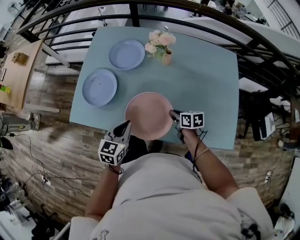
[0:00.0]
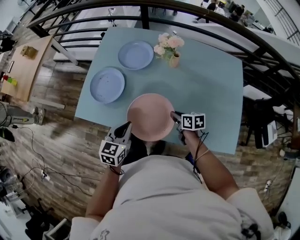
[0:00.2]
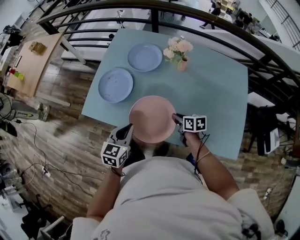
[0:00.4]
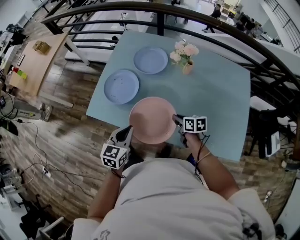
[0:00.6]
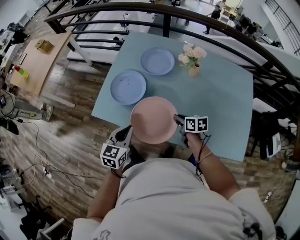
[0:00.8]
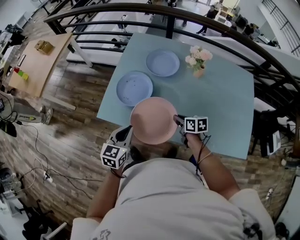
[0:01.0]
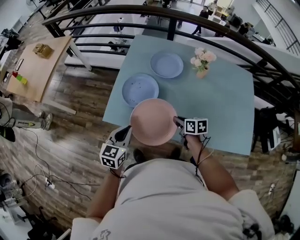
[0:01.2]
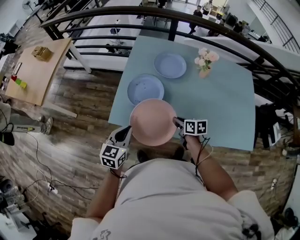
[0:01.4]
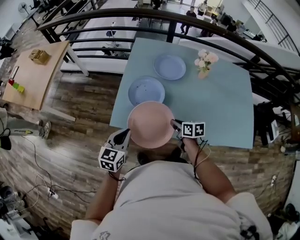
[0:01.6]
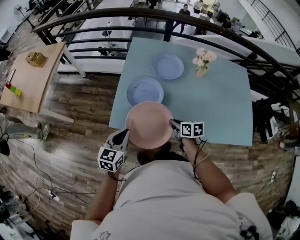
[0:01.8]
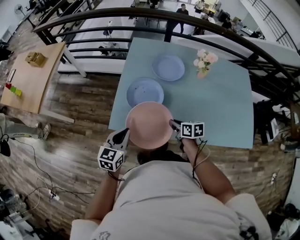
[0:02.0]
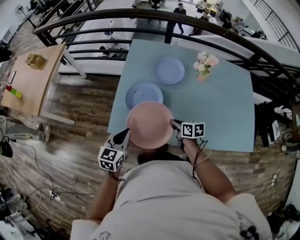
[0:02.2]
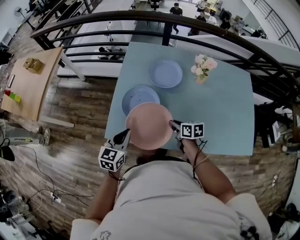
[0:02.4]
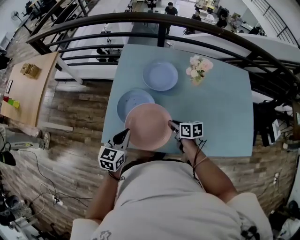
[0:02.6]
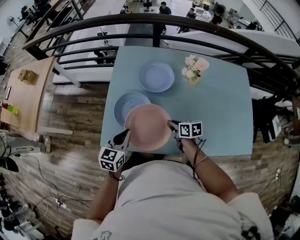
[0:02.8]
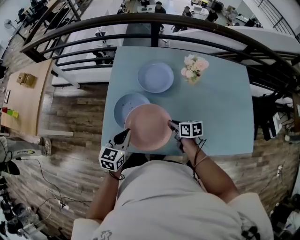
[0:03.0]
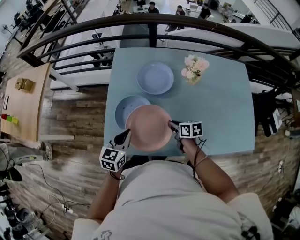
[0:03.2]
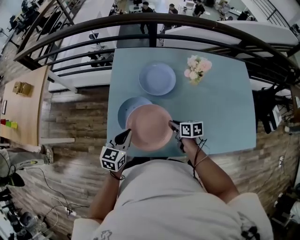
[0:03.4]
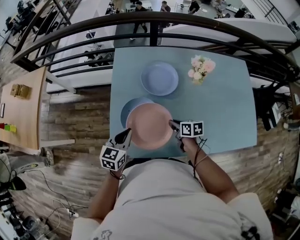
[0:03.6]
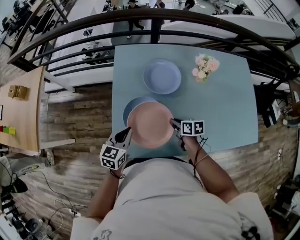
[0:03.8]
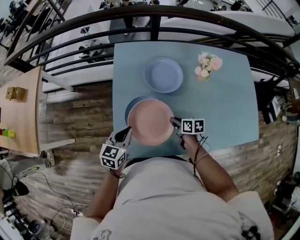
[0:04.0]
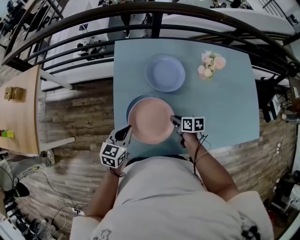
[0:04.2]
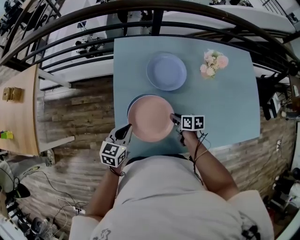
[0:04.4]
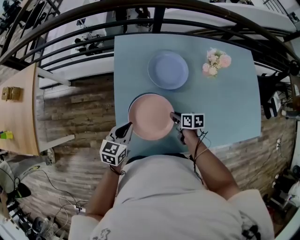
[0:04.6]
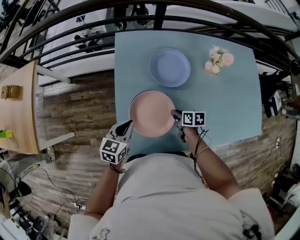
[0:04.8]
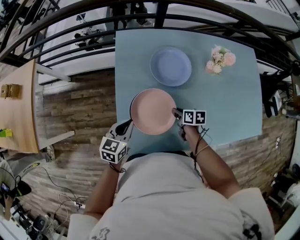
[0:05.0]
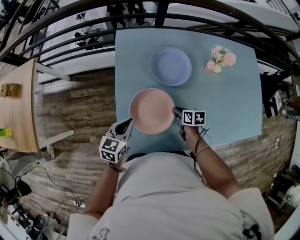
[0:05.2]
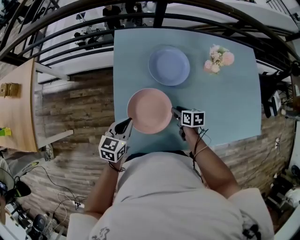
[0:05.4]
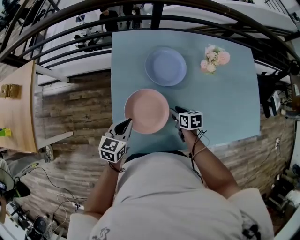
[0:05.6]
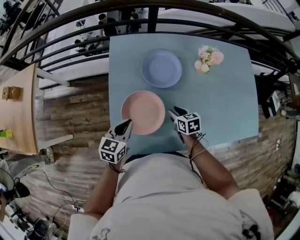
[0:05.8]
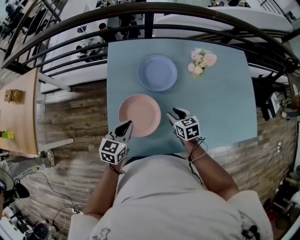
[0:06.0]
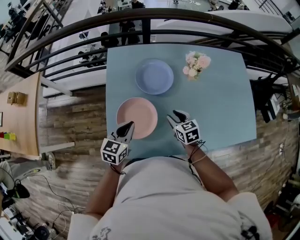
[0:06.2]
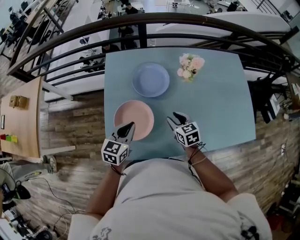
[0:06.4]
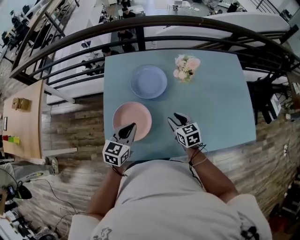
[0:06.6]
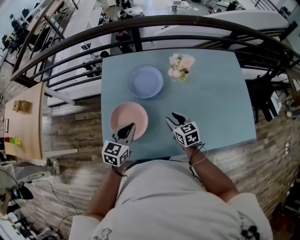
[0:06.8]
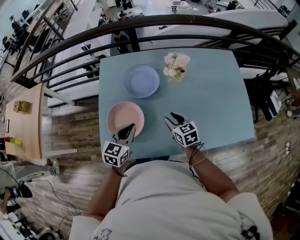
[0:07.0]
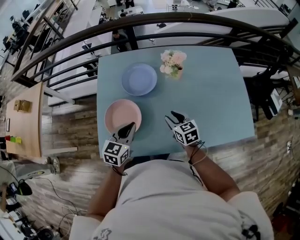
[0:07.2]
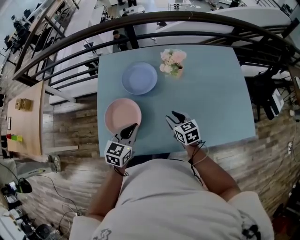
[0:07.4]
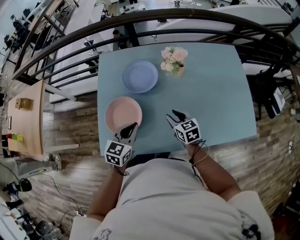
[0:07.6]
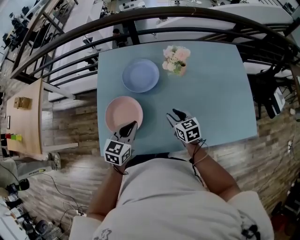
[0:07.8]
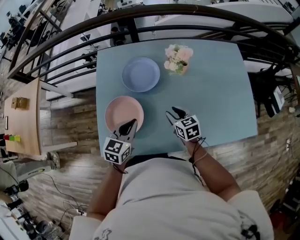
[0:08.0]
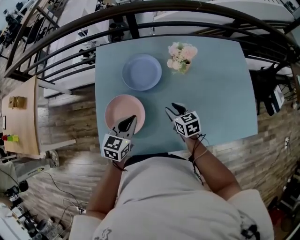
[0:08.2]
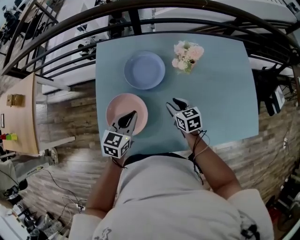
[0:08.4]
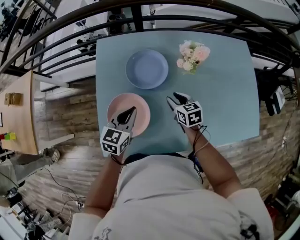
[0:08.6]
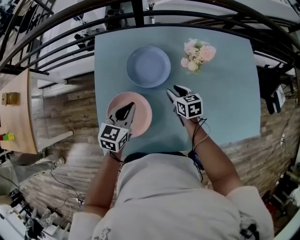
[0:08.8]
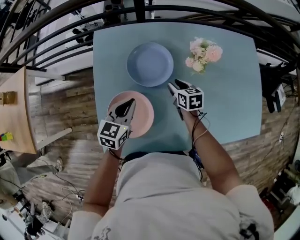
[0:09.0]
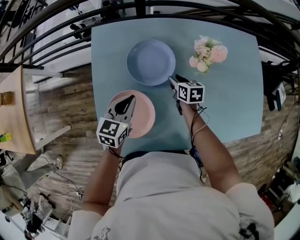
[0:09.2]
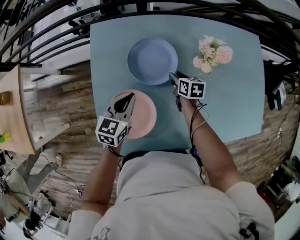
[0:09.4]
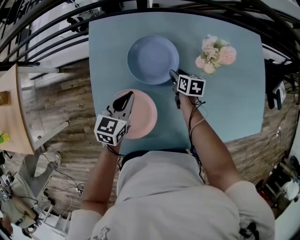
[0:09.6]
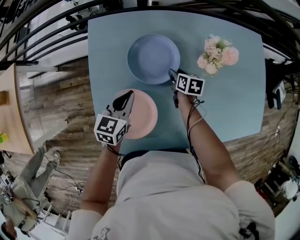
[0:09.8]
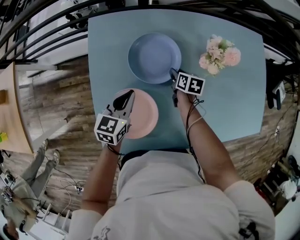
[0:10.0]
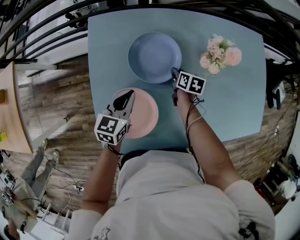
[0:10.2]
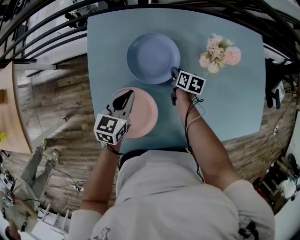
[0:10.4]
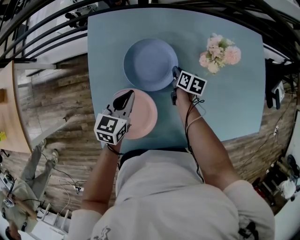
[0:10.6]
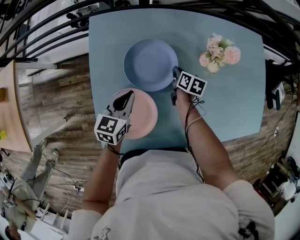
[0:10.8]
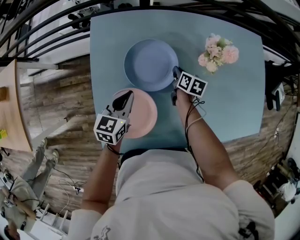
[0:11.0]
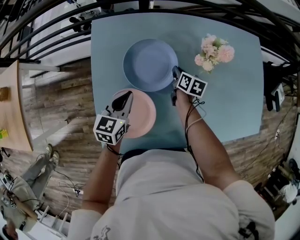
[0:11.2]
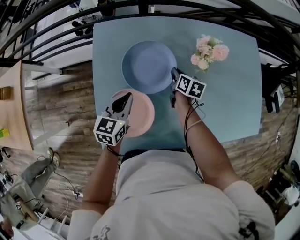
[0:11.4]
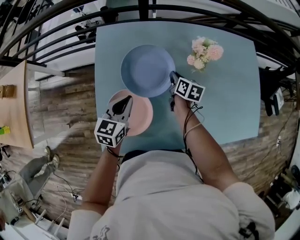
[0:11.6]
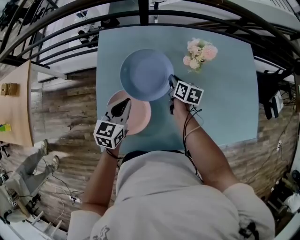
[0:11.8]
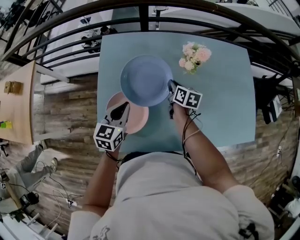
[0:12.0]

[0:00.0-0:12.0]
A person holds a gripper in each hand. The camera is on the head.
0:00.0 to 0:01.6: Both grippers travel together to the left, about 30 cm.
0:01.6 to 0:03.0: Both grippers travel together forward and to the right, some 15 cm.
0:03.0 to 0:04.4: Both grippers move to the left, forward and downward, approximately 15 cm.
0:04.4 to 0:06.0: The right gripper travels upward by roughly 5 cm, turns by approximately 30 degrees, and opens; the left gripper is displaced to the right by roughly 5 cm.
0:06.0 to 0:07.6: The grippers both shift to the right by about 15 cm.
0:07.6 to 0:09.0: The left gripper is displaced forward and to the left by approximately 15 cm. The right gripper is displaced forward and downward by roughly 20 cm.
0:09.0 to 0:10.4: The left gripper changes place by about 5 cm; the right gripper moves downward and forward, roughly 10 cm, swivels approximately 30 degrees, and closes up.
0:10.4 to 0:12.0: The right gripper is displaced upward and backward by some 15 cm. Meanwhile the left gripper heads backward and upward, covering roughly 10 cm.

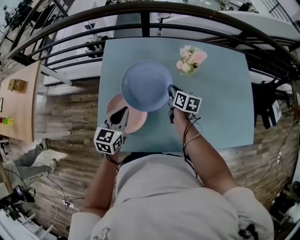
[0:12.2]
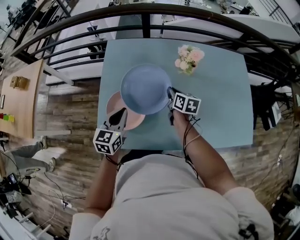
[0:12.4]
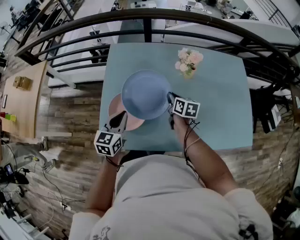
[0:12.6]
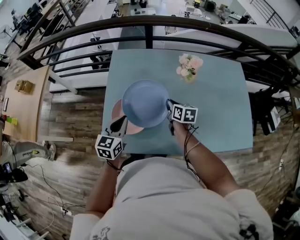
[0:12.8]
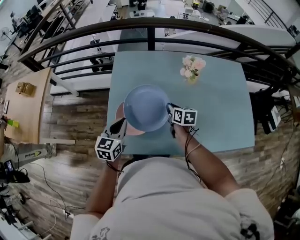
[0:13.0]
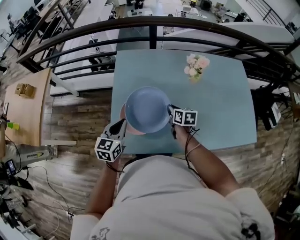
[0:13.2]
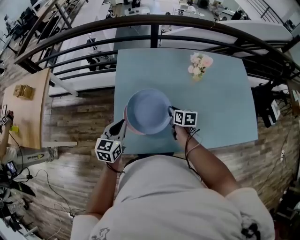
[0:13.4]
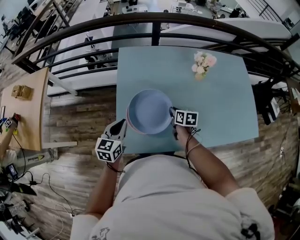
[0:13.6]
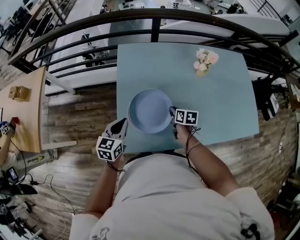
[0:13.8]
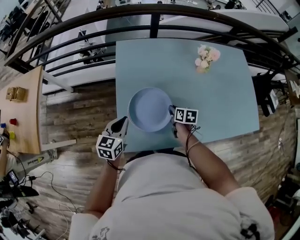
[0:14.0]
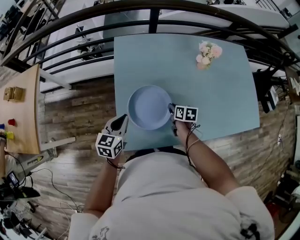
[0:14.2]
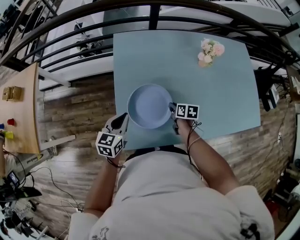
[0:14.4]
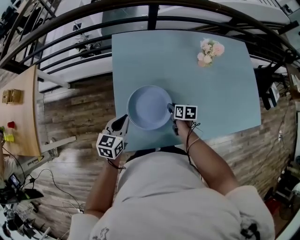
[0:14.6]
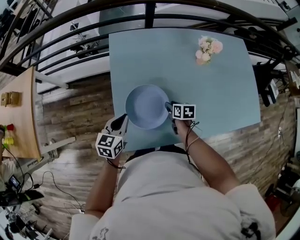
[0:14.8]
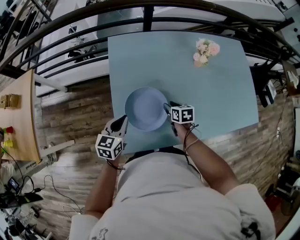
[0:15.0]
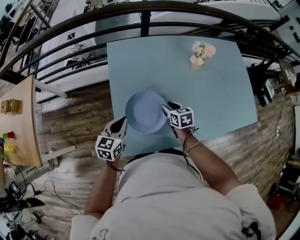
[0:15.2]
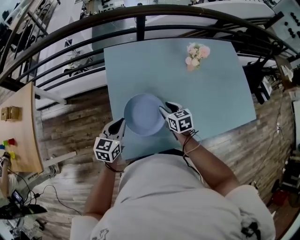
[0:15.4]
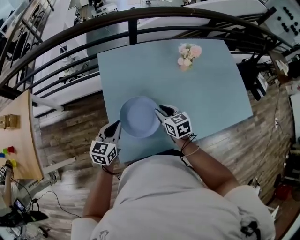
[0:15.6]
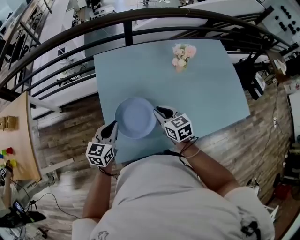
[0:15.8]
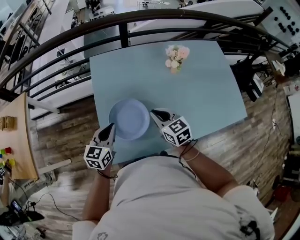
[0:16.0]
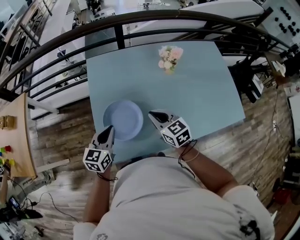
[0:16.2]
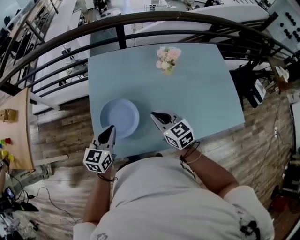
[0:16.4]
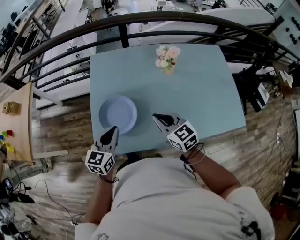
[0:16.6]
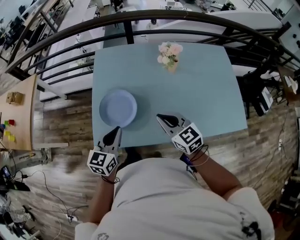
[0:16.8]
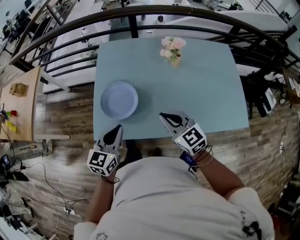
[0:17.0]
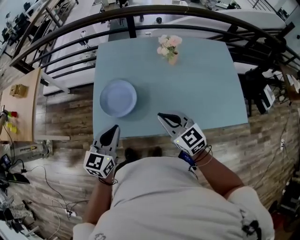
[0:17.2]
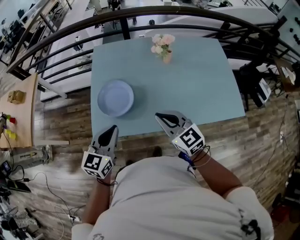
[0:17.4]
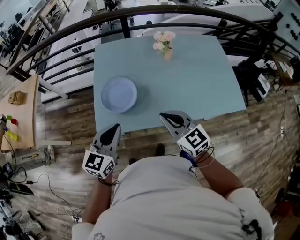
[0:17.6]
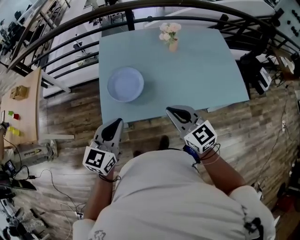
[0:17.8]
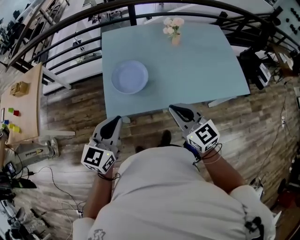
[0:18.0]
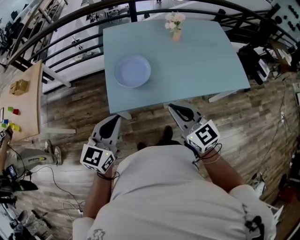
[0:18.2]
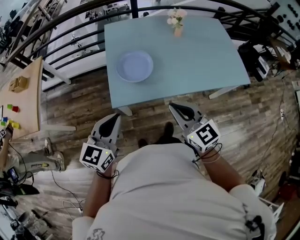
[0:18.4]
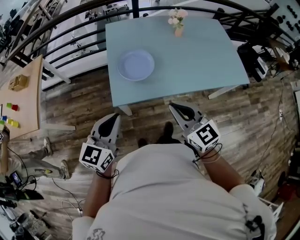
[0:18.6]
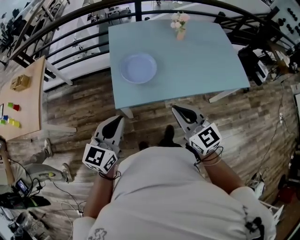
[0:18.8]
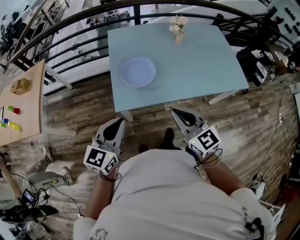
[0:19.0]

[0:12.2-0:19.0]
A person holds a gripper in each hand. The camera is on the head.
0:12.2 to 0:13.6: The right gripper moves backward, to the left and downward, approximately 15 cm, while the left gripper is displaced to the left by roughly 15 cm.
0:13.6 to 0:15.0: The right gripper opens up. Meanwhile the left gripper ends up about 5 cm from where it was.
0:15.0 to 0:16.2: The left gripper goes approximately 10 cm to the right and upward. Meanwhile the right gripper heads upward, covering roughly 20 cm, swivels roughly 40 degrees, and closes up.
0:16.2 to 0:17.6: The grippers both shift backward and upward by approximately 25 cm.
0:17.6 to 0:19.0: The right gripper shifts approximately 20 cm backward and to the left, while the left gripper moves to the left and backward, about 20 cm.

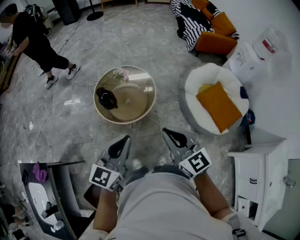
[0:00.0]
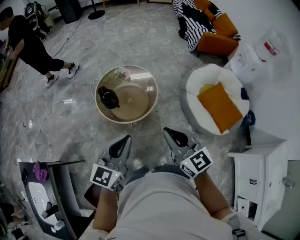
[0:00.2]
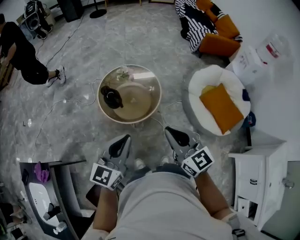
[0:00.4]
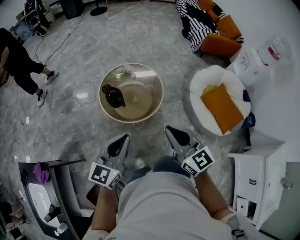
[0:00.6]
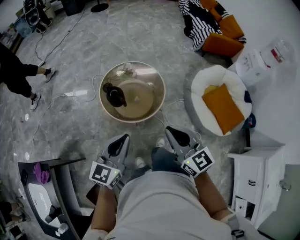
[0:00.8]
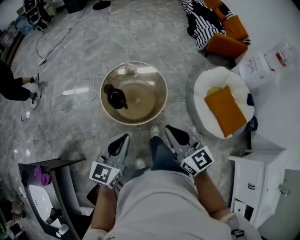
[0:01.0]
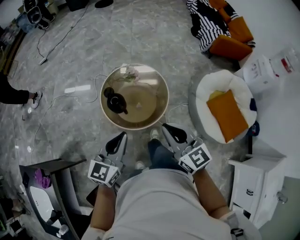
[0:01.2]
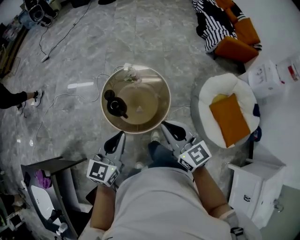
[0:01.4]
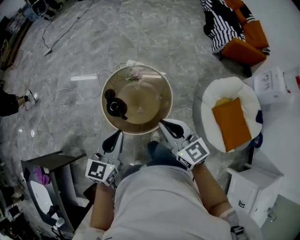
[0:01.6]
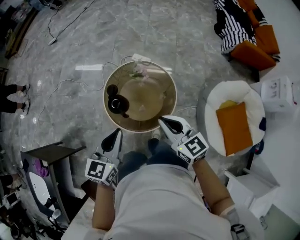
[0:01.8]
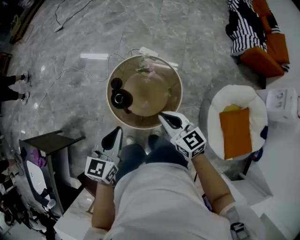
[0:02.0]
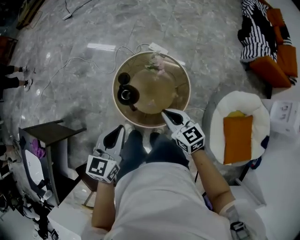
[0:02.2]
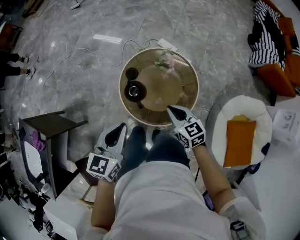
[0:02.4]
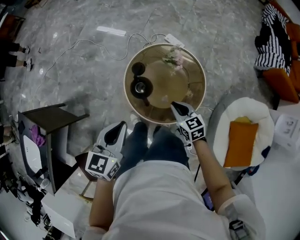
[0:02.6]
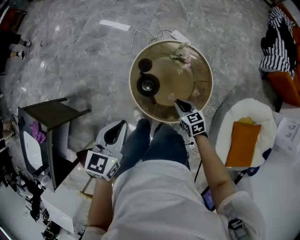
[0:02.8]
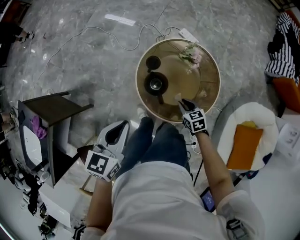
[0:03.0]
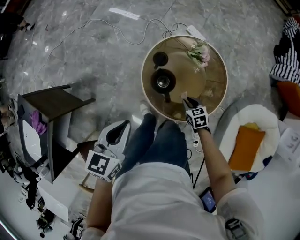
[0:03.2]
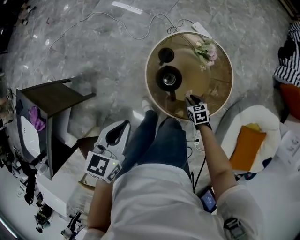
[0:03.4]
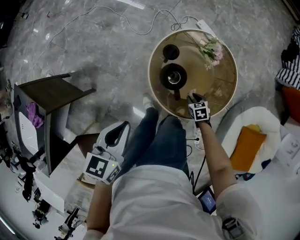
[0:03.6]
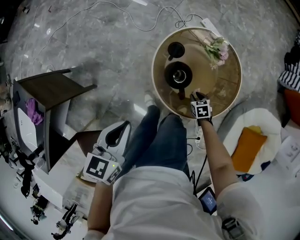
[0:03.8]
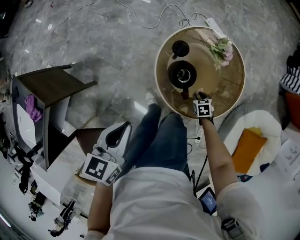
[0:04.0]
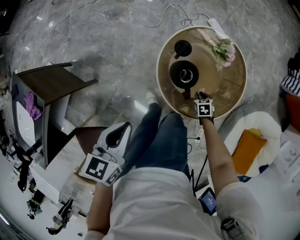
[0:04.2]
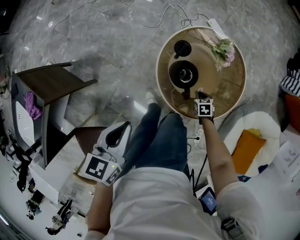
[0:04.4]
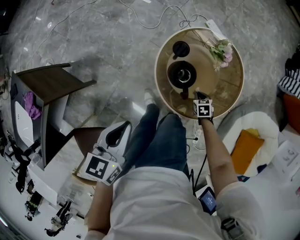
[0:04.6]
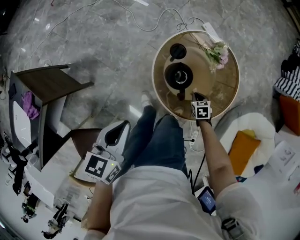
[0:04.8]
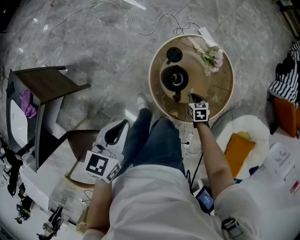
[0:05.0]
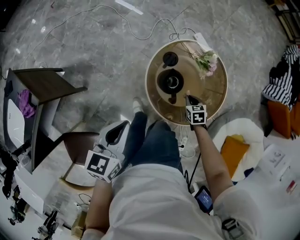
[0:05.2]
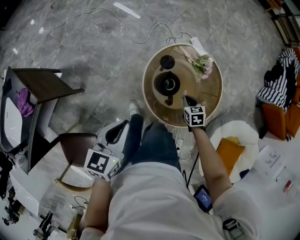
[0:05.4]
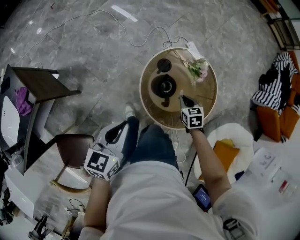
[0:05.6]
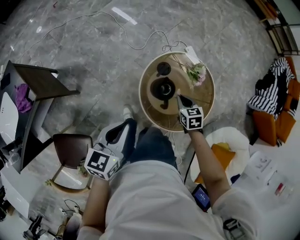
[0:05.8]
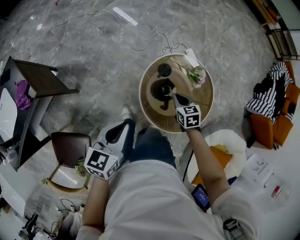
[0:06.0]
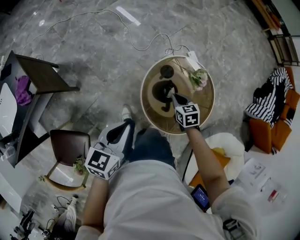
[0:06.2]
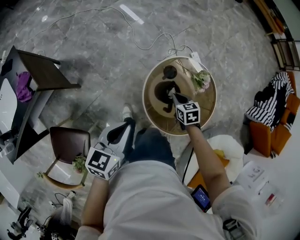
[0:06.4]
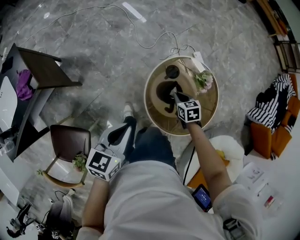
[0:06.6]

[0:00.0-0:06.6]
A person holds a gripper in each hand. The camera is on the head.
0:00.0 to 0:01.6: The grippers both shift forward by approximately 25 cm.
0:01.6 to 0:03.2: The right gripper travels downward by about 40 cm, and tilts its fingers roughly 40 degrees downward, while the left gripper is displaced to the left, downward and forward by some 20 cm, and rotates approximately 30 degrees.
0:03.2 to 0:05.0: The left gripper ends up some 10 cm from where it was, while the right gripper is displaced downward by approximately 5 cm.
0:05.0 to 0:06.6: The right gripper is displaced upward, to the left and forward by about 20 cm.
